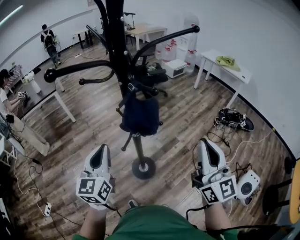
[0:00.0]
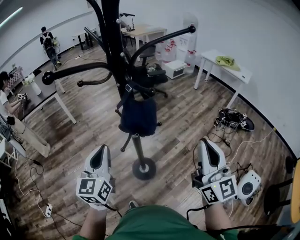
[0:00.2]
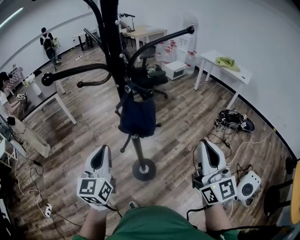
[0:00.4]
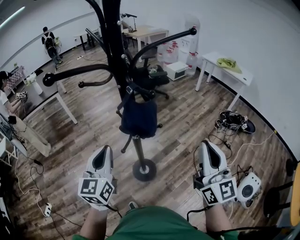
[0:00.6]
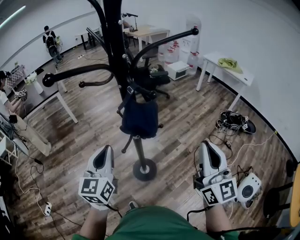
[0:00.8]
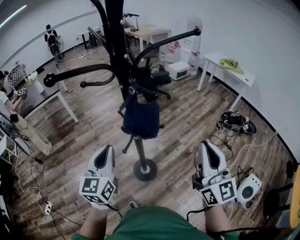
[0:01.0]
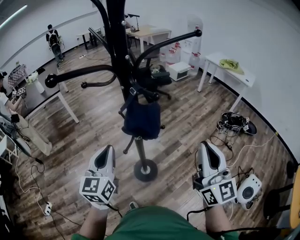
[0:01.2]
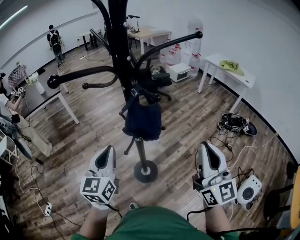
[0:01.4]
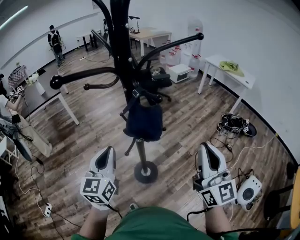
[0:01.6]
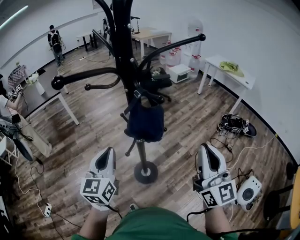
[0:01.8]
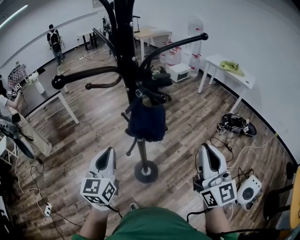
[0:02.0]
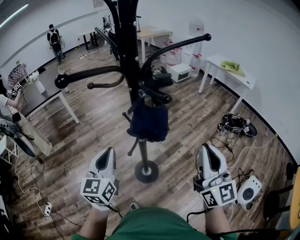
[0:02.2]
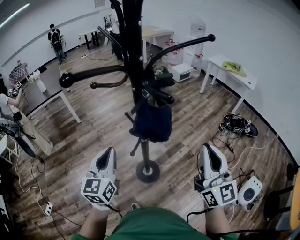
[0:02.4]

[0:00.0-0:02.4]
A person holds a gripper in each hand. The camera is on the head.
0:00.0 to 0:02.4: There are only small adjustments of the grippers.

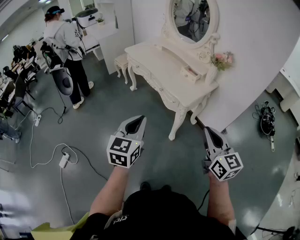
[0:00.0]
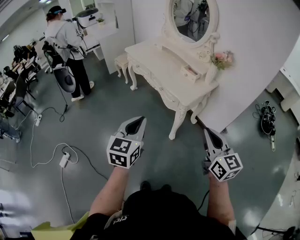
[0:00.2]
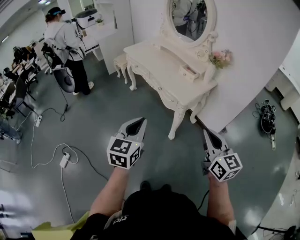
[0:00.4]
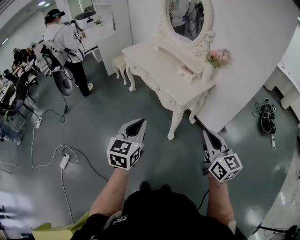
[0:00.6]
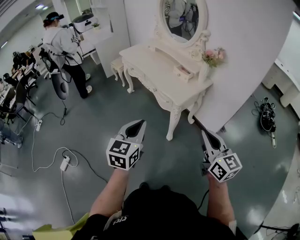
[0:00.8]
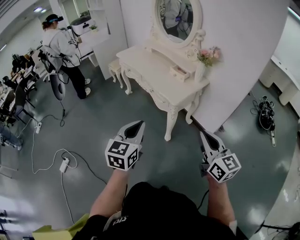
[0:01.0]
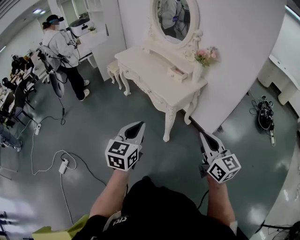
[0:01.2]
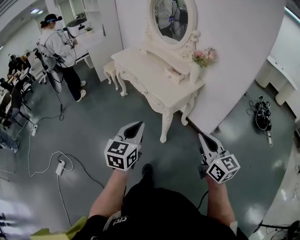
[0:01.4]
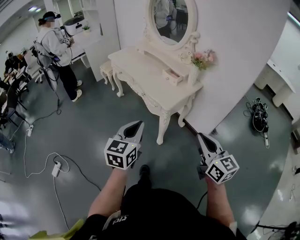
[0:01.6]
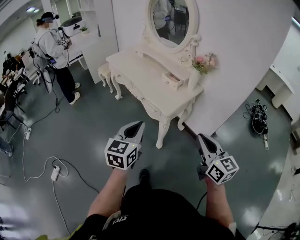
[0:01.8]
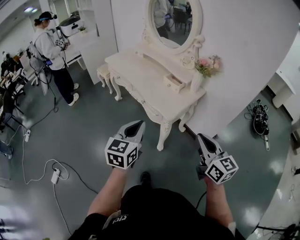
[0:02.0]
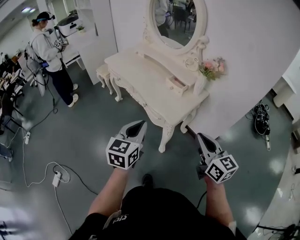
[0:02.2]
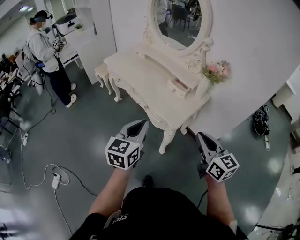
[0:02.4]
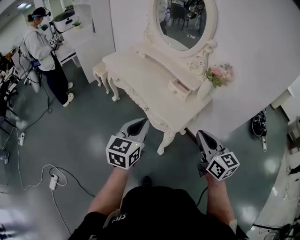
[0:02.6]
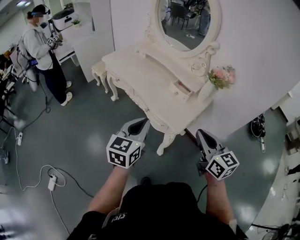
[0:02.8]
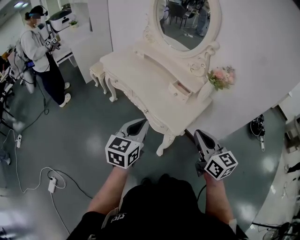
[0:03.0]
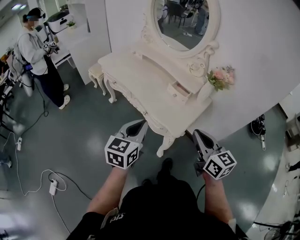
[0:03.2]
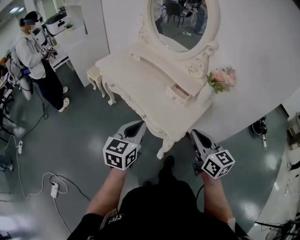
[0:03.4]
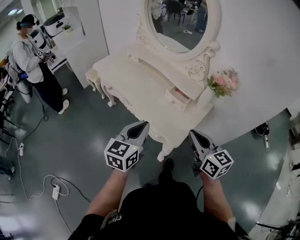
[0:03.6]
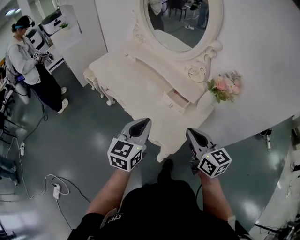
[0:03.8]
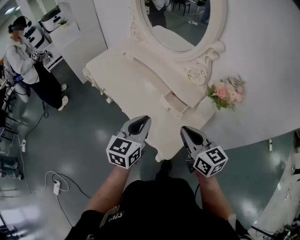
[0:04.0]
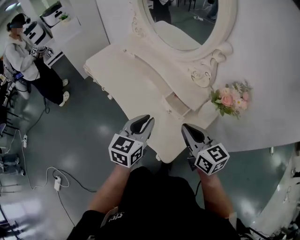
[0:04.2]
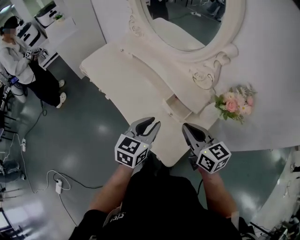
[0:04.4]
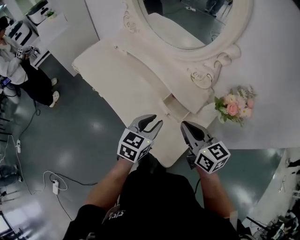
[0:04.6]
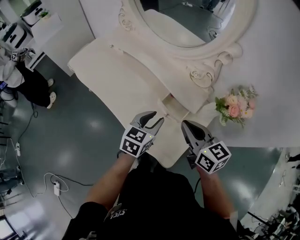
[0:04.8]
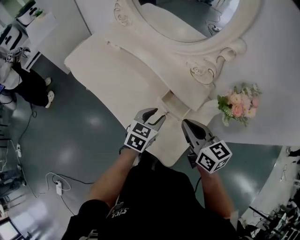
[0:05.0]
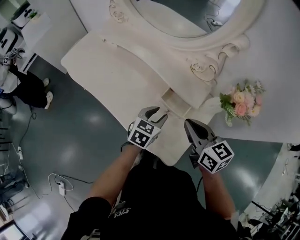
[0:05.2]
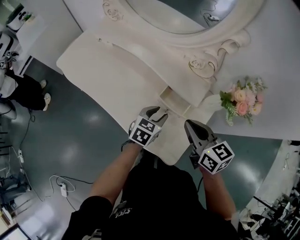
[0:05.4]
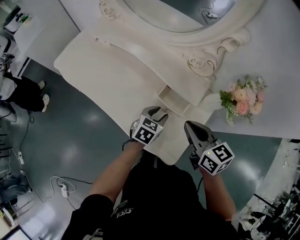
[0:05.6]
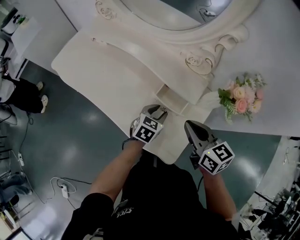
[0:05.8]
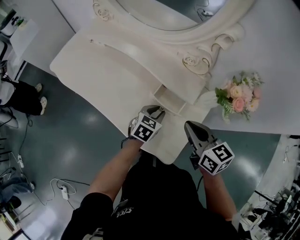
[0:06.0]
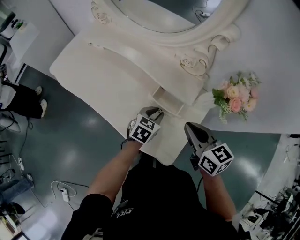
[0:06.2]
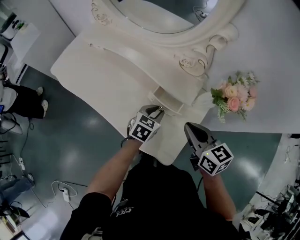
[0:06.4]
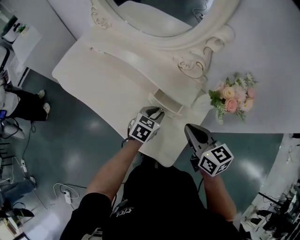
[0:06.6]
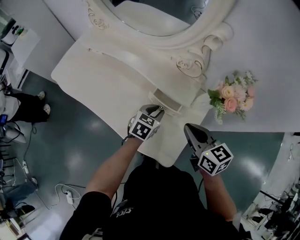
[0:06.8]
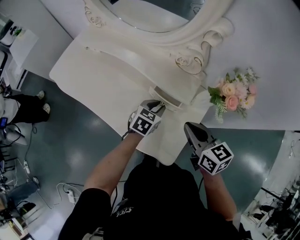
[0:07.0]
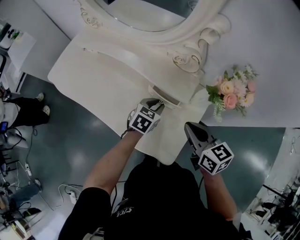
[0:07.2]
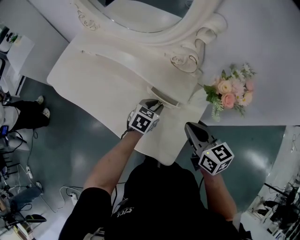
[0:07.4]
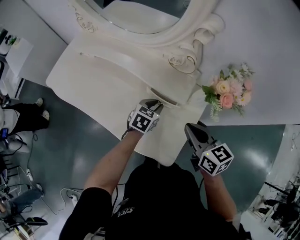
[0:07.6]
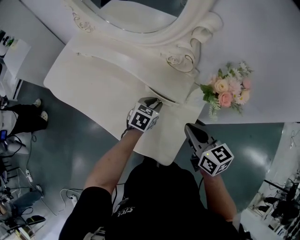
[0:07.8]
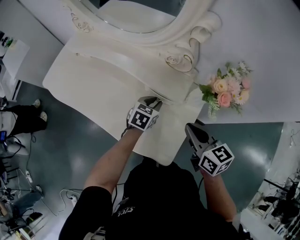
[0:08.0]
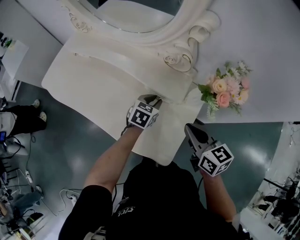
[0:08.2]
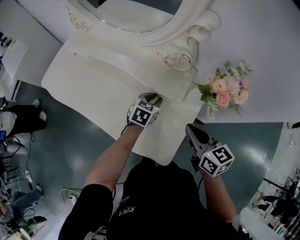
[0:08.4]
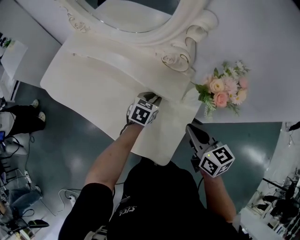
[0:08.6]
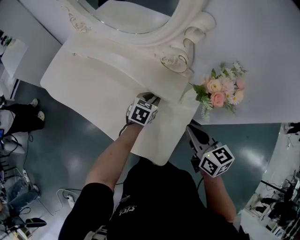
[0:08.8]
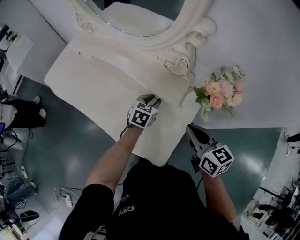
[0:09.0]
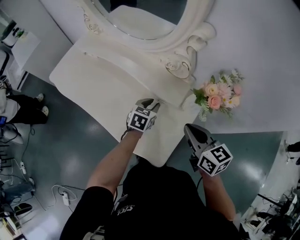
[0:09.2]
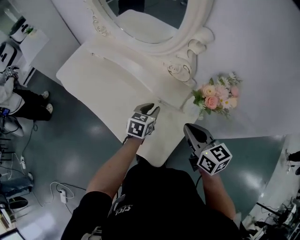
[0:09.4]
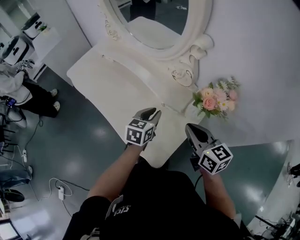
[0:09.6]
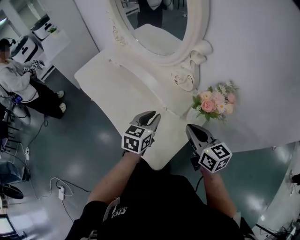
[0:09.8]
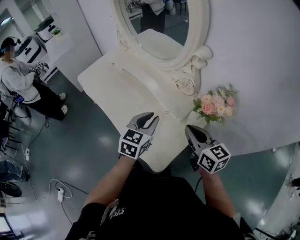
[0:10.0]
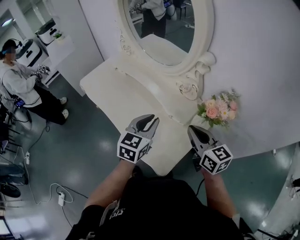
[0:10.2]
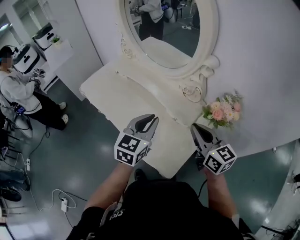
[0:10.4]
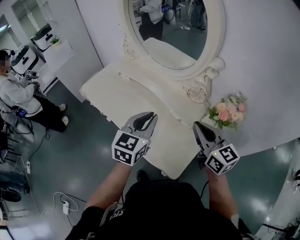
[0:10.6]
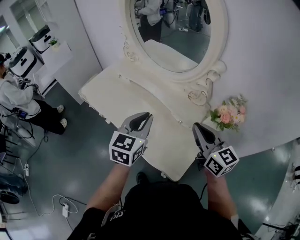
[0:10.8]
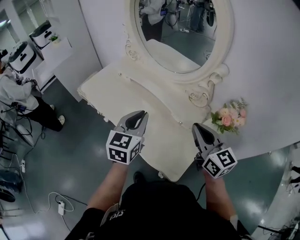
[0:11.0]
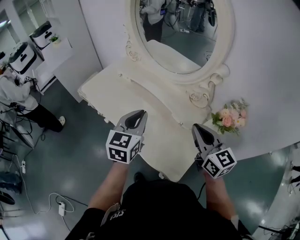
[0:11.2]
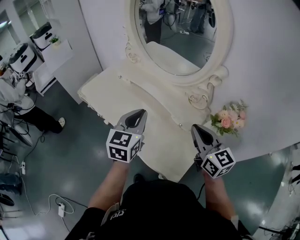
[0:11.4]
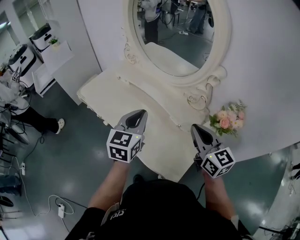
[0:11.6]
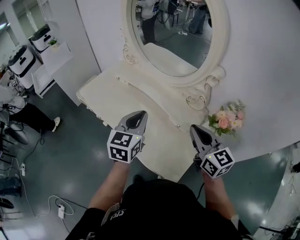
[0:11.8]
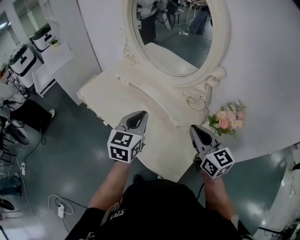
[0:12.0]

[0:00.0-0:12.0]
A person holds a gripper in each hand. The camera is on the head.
0:00.0 to 0:01.6: The two grippers go roughly 10 cm to the right.
0:01.6 to 0:03.0: The right gripper goes some 25 cm forward and to the left. Meanwhile the left gripper goes roughly 25 cm forward.
0:03.0 to 0:04.4: The left gripper travels forward and to the right by some 30 cm; the right gripper heads forward, covering approximately 25 cm.
0:04.4 to 0:06.0: The right gripper goes about 5 cm downward. The left gripper shifts about 20 cm downward and forward, and rotates about 30 degrees.
0:06.0 to 0:07.6: The left gripper ends up about 5 cm from where it was.
0:07.6 to 0:09.0: There are only small adjustments of the grippers.
0:09.0 to 0:10.4: The right gripper moves upward, approximately 10 cm, and swivels about 20 degrees. The left gripper shifts roughly 25 cm upward and to the left, and swivels approximately 30 degrees.
0:10.4 to 0:12.0: The right gripper changes place by about 5 cm. Meanwhile the left gripper travels to the left by roughly 5 cm.

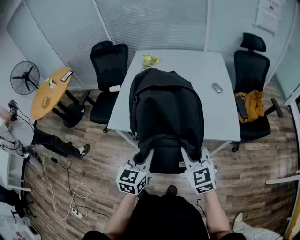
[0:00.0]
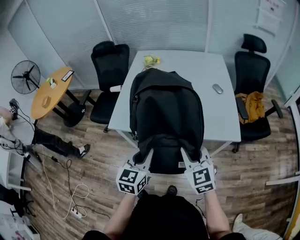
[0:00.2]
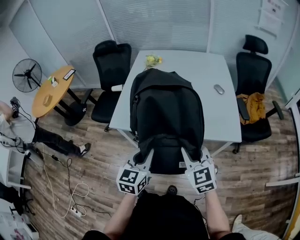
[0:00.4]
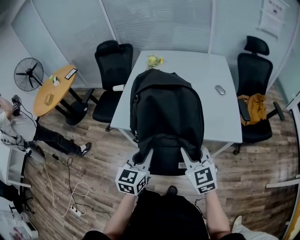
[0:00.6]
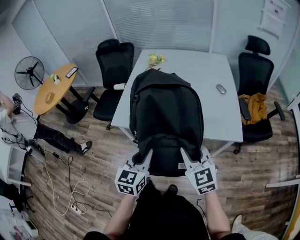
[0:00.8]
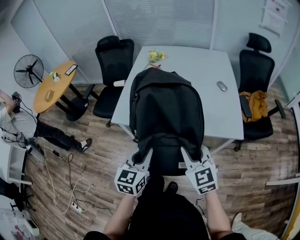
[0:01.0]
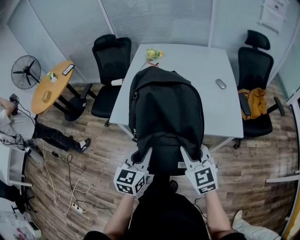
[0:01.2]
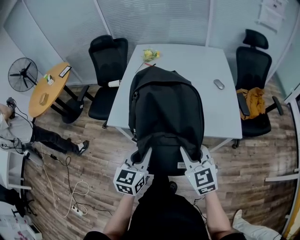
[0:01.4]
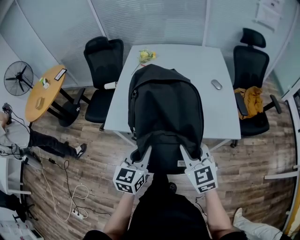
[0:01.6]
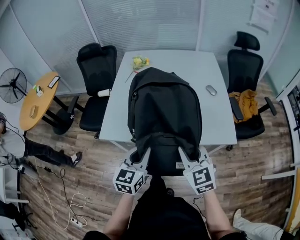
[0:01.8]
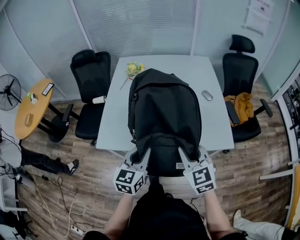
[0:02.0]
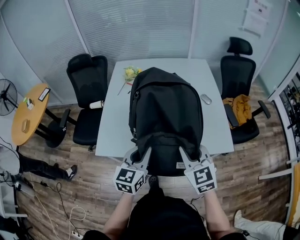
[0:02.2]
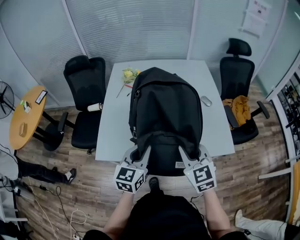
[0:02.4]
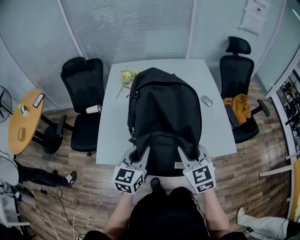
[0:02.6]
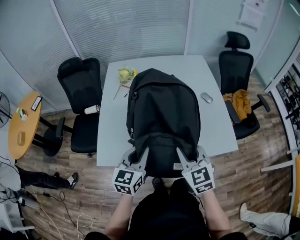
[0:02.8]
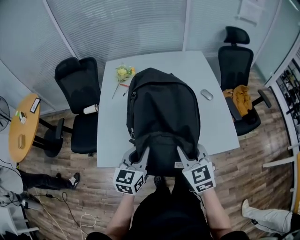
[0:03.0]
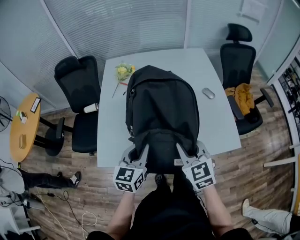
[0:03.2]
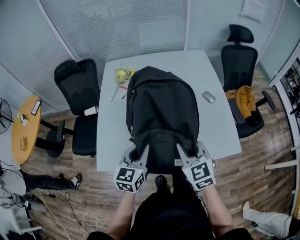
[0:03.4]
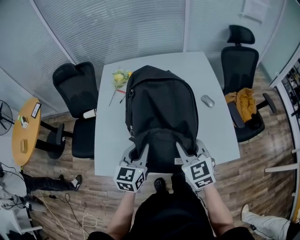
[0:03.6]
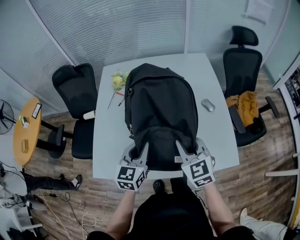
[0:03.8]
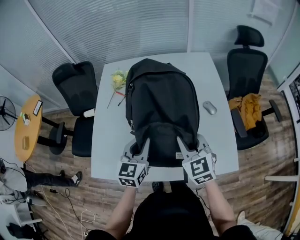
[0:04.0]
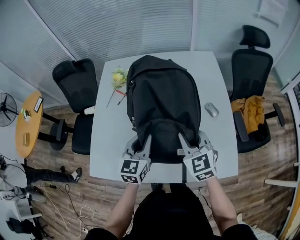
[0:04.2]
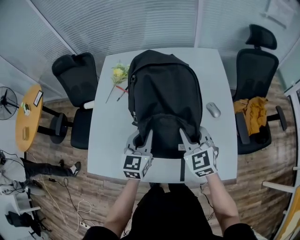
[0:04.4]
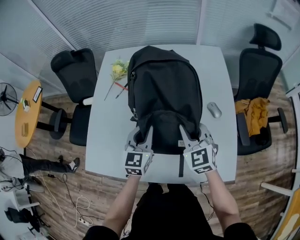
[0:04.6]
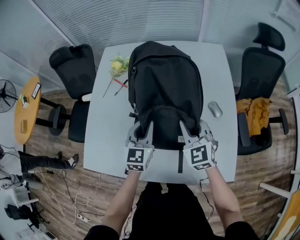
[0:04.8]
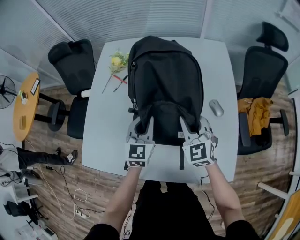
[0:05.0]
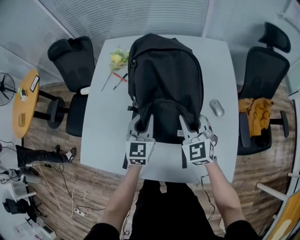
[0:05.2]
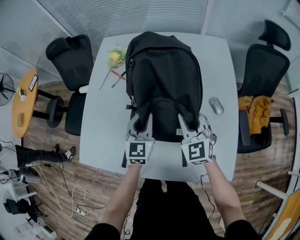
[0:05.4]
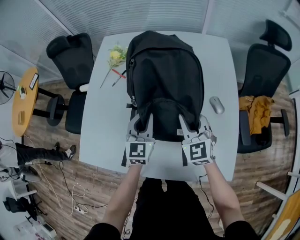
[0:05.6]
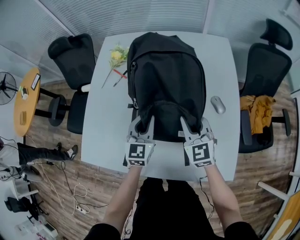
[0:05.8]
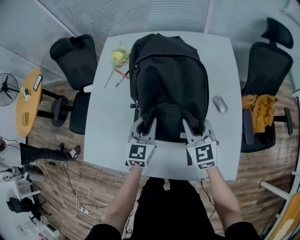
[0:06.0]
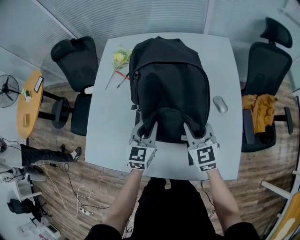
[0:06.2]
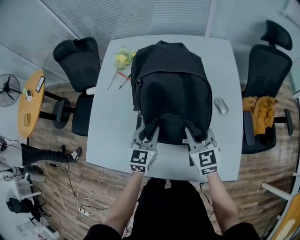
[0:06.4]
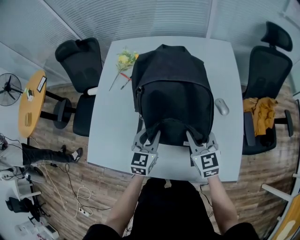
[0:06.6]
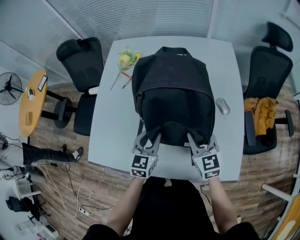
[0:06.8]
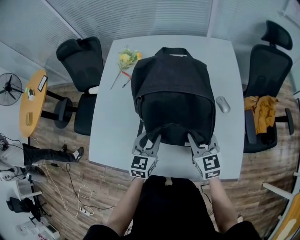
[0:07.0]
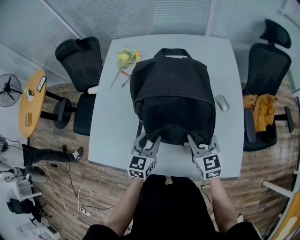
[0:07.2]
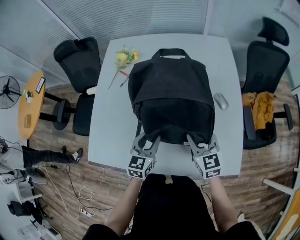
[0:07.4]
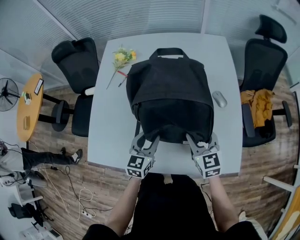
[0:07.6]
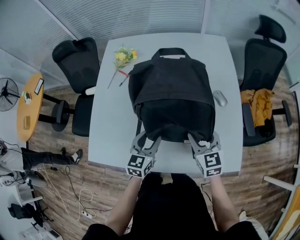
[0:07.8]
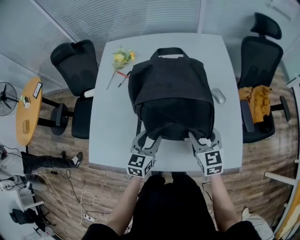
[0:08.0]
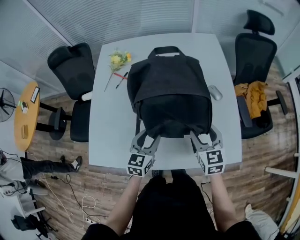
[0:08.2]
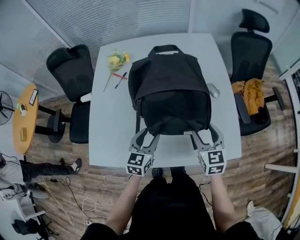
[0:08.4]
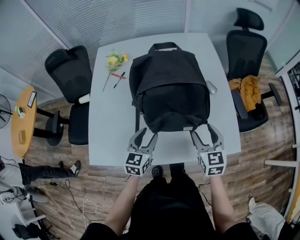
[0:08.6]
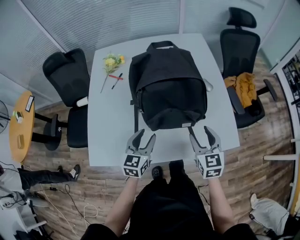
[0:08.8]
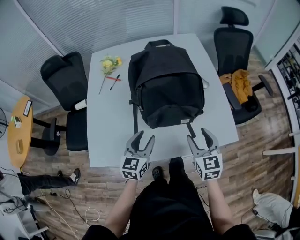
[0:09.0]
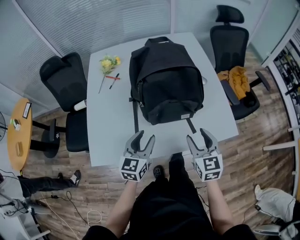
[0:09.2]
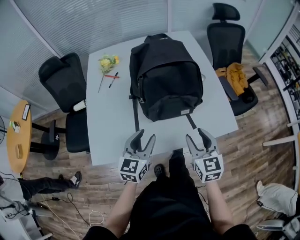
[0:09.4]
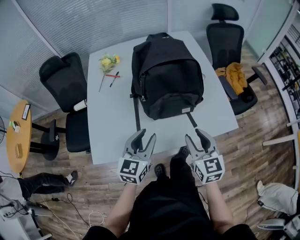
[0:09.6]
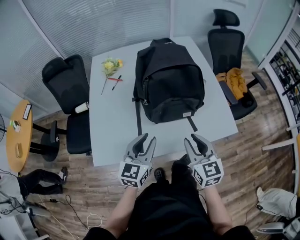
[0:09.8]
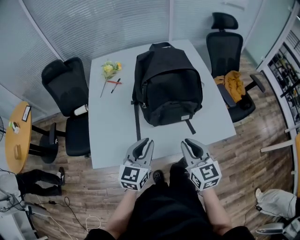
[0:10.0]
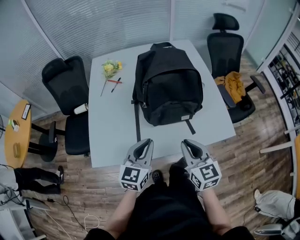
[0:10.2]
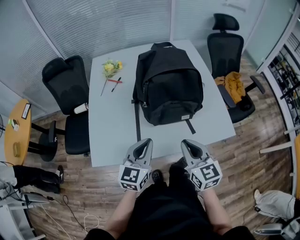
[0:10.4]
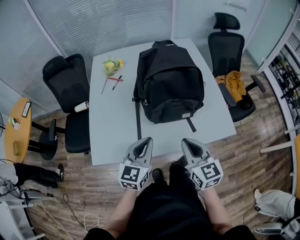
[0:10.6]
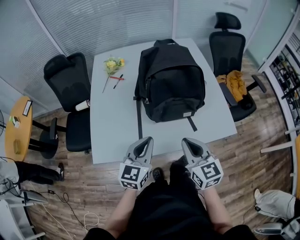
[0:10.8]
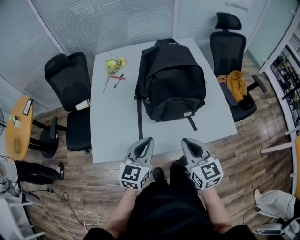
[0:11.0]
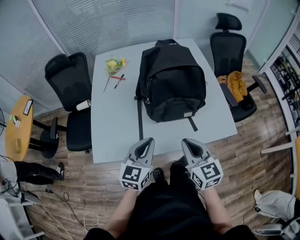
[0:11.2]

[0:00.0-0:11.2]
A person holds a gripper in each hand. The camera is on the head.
0:00.0 to 0:01.6: The grippers stay close to where they were, moving slightly.
0:01.6 to 0:03.2: The two grippers go some 20 cm forward.
0:03.2 to 0:04.8: Both grippers travel together forward and to the right, roughly 25 cm.
0:04.8 to 0:06.4: The left gripper shifts by roughly 5 cm. The right gripper moves some 5 cm.
0:06.4 to 0:08.0: Both grippers travel together backward, some 5 cm. The right gripper opens its fingers. The left gripper opens.
0:08.0 to 0:09.6: The right gripper shifts roughly 20 cm backward; the left gripper heads backward and upward, covering some 15 cm.
0:09.6 to 0:11.2: The right gripper ends up about 5 cm from where it was, and closes up, while the left gripper closes up.
